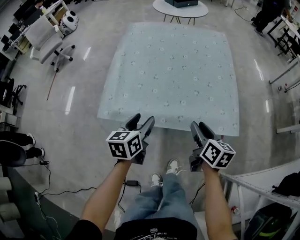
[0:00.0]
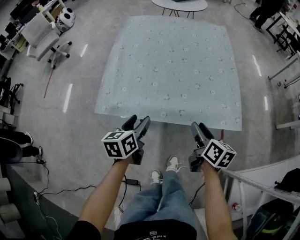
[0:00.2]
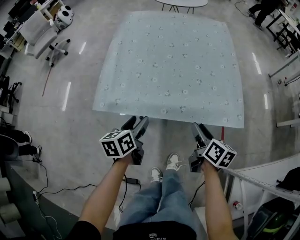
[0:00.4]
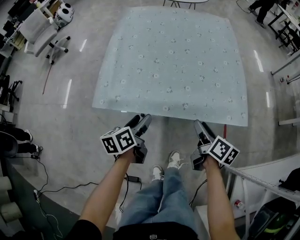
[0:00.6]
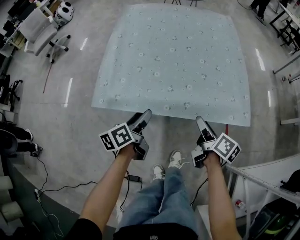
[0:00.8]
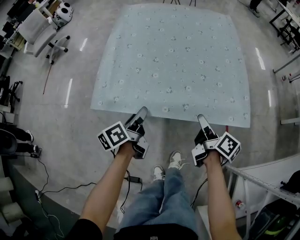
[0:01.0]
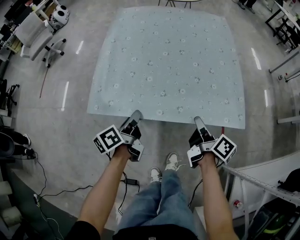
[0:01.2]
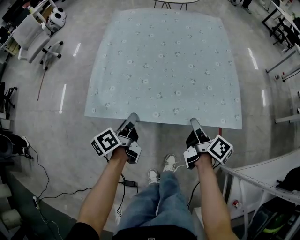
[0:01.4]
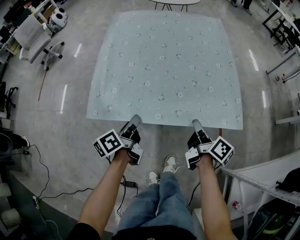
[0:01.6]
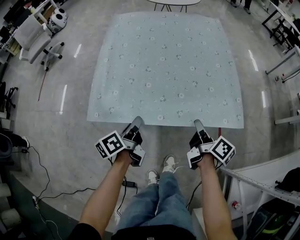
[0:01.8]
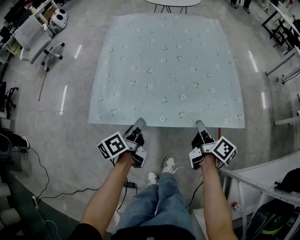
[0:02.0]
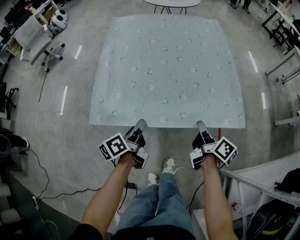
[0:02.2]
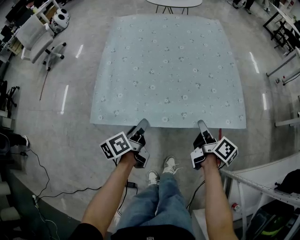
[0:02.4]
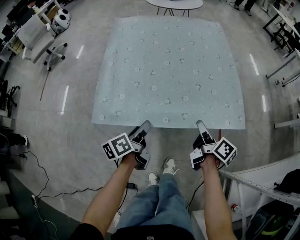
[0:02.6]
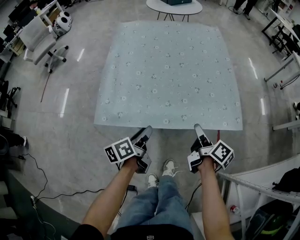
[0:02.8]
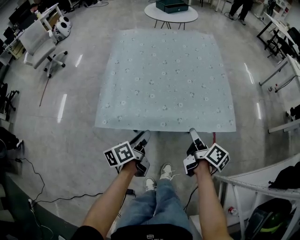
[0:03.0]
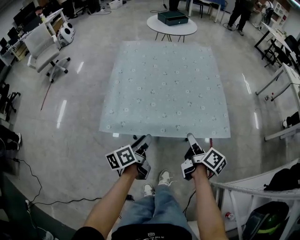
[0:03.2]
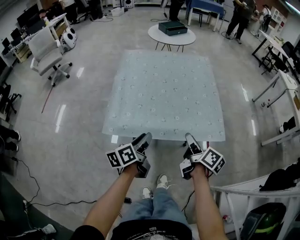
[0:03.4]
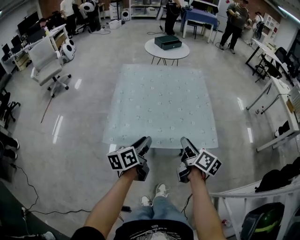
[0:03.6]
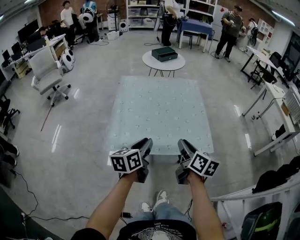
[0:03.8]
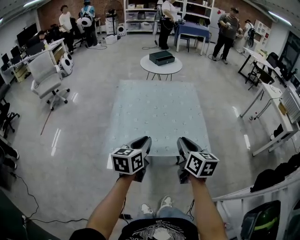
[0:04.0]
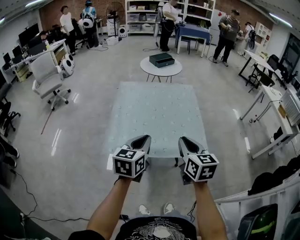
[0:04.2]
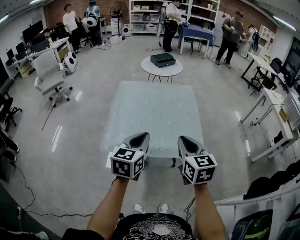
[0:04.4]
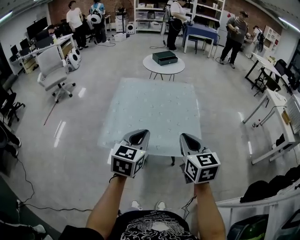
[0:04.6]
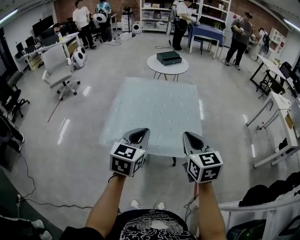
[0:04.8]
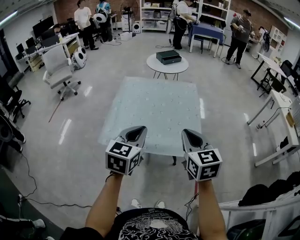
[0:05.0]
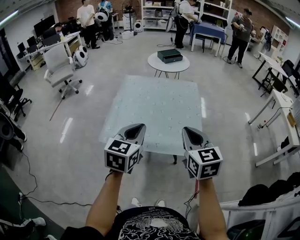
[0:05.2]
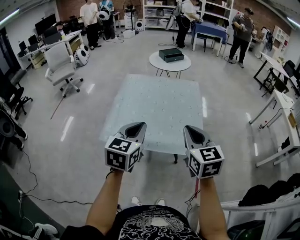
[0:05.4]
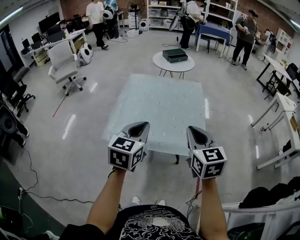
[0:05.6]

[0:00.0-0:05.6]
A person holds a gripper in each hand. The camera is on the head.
0:00.0 to 0:01.4: Both grippers move downward, roughly 5 cm. The left gripper turns by some 40 degrees, and closes its fingers; the right gripper turns by some 30 degrees, and closes up.
0:01.4 to 0:02.8: The right gripper opens up, while the left gripper shifts approximately 5 cm to the right, and opens up.
0:02.8 to 0:04.2: Both grippers travel together upward, approximately 30 cm. The right gripper rolls counterclockwise, seen from behind, by approximately 60 degrees, and closes up. Meanwhile the left gripper twists about 50 degrees clockwise, seen from behind, and closes.
0:04.2 to 0:05.6: The left gripper heads upward, covering roughly 5 cm, while the right gripper travels to the right by some 5 cm.

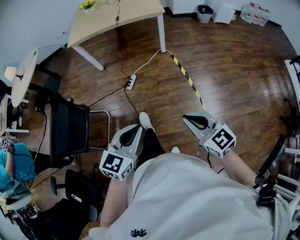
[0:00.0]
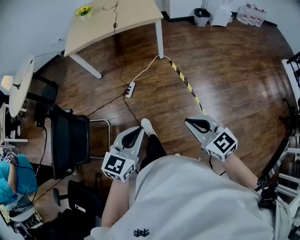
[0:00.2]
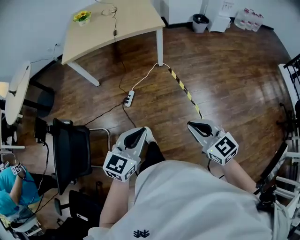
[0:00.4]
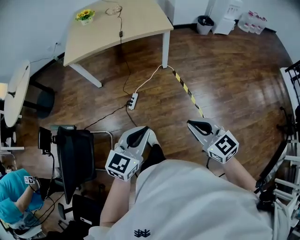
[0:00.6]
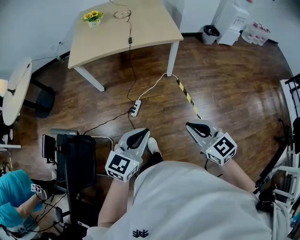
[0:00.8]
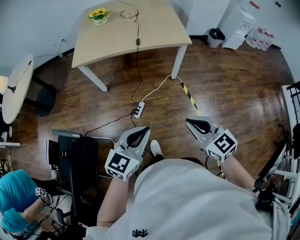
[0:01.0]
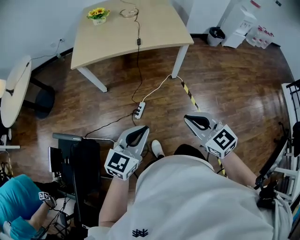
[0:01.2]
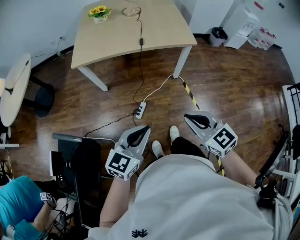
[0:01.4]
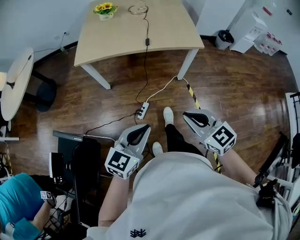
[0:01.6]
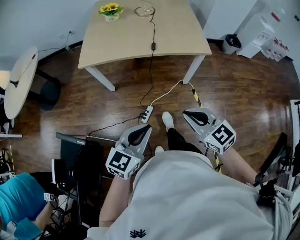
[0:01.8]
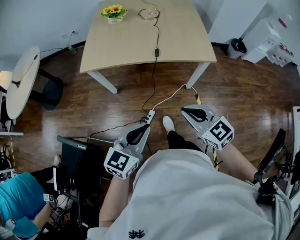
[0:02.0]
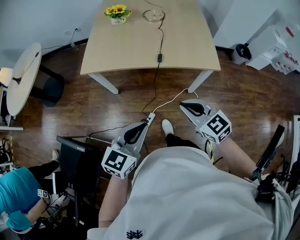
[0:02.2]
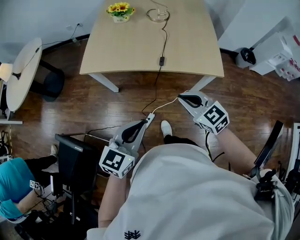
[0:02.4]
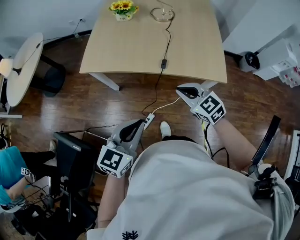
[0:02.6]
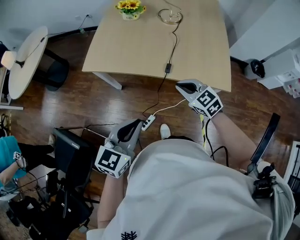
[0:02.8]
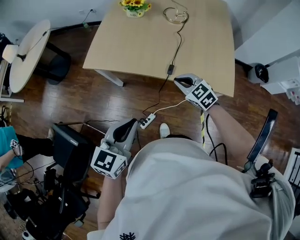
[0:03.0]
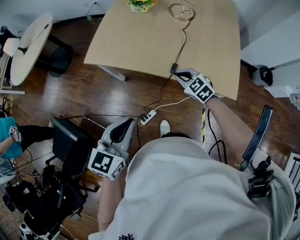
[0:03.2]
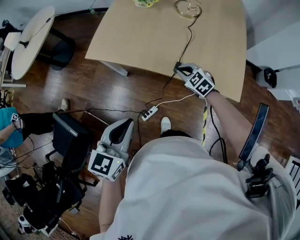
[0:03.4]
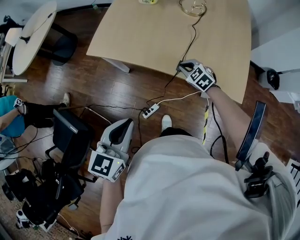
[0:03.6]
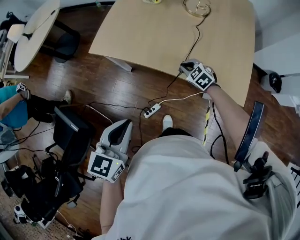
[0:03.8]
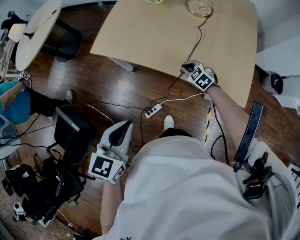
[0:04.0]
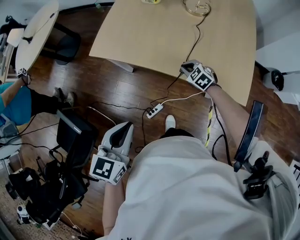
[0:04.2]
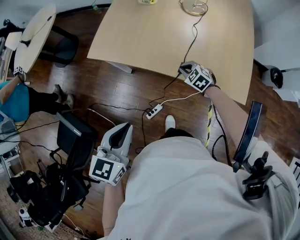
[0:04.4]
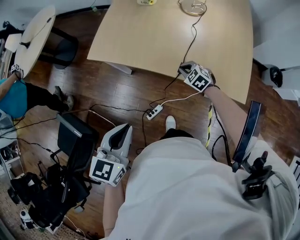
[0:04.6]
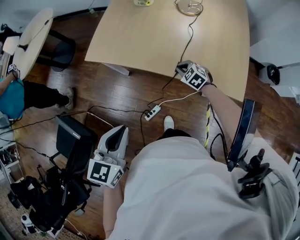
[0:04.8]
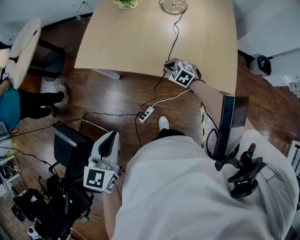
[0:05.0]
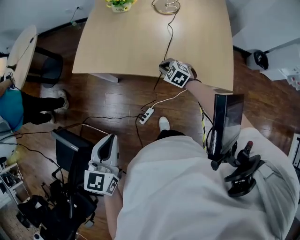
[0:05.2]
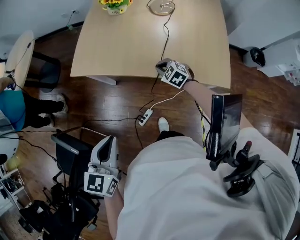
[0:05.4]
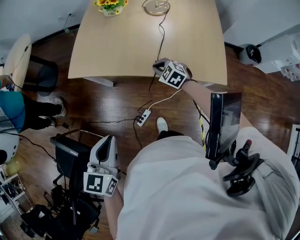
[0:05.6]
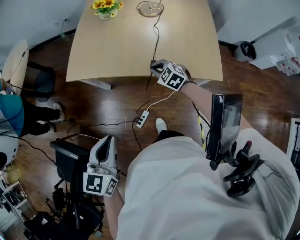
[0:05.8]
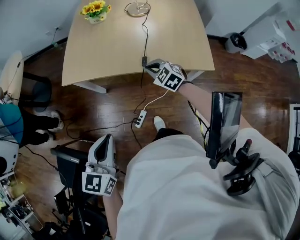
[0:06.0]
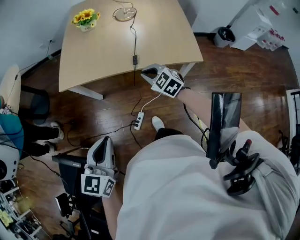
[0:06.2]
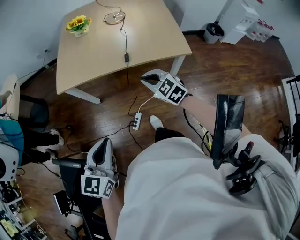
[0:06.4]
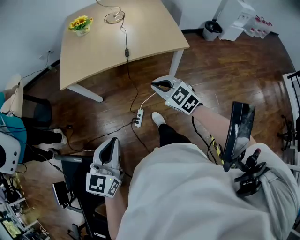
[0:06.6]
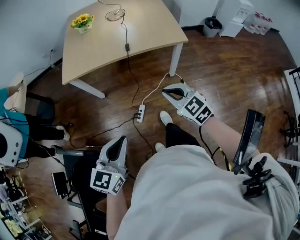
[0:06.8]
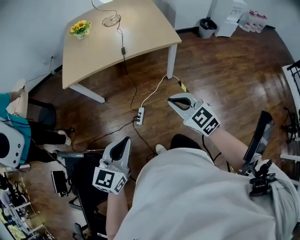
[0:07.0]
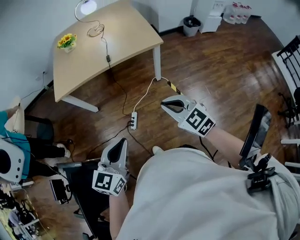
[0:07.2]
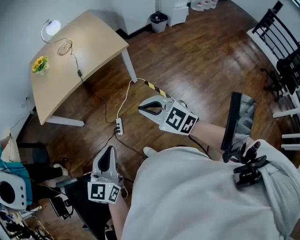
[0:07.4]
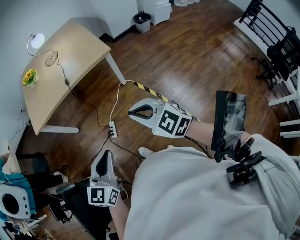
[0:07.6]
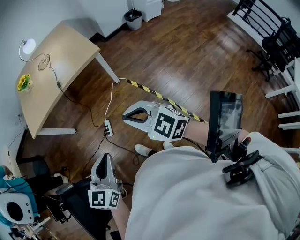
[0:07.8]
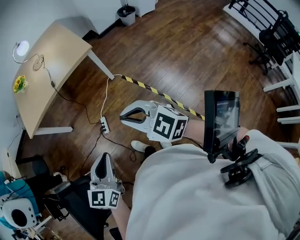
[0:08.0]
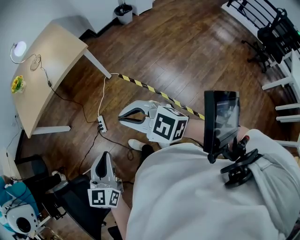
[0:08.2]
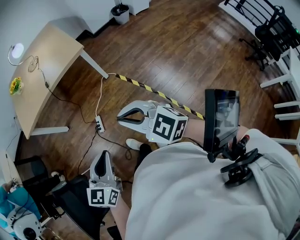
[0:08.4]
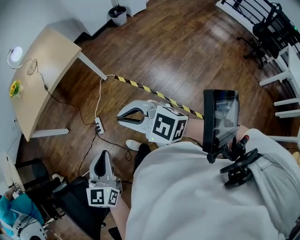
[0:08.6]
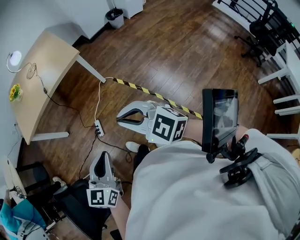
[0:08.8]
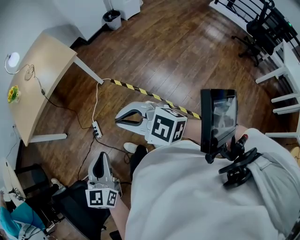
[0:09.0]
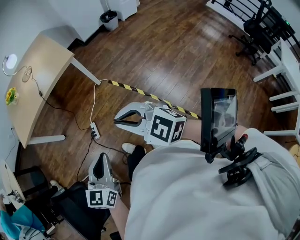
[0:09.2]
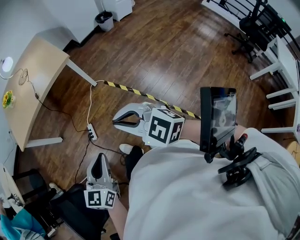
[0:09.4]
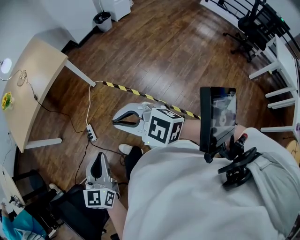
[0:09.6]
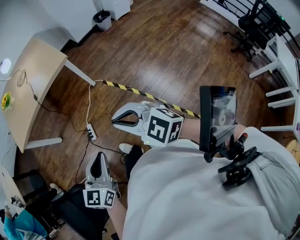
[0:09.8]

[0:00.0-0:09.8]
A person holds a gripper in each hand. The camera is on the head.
0:00.0 to 0:01.4: Both grippers move forward and to the left, approximately 40 cm.
0:01.4 to 0:02.8: The right gripper moves forward, about 40 cm, and changes its angle by roughly 20 degrees, while the left gripper shifts roughly 30 cm forward, and swivels some 20 degrees.
0:02.8 to 0:04.2: The right gripper heads downward and forward, covering some 20 cm, and changes its angle by approximately 20 degrees. The left gripper changes place by some 5 cm.
0:04.2 to 0:05.6: The right gripper moves roughly 5 cm.
0:05.6 to 0:07.0: The right gripper moves approximately 50 cm, and turns by about 40 degrees. Meanwhile the left gripper moves roughly 25 cm, and turns by about 30 degrees.
0:07.0 to 0:08.4: The left gripper is displaced to the right and backward by some 25 cm; the right gripper heads backward, to the right and upward, covering approximately 25 cm.
0:08.4 to 0:09.8: The grippers make only small movements.

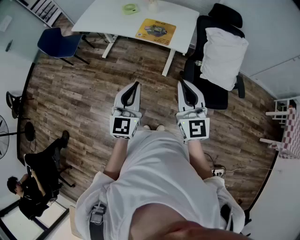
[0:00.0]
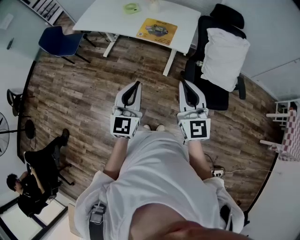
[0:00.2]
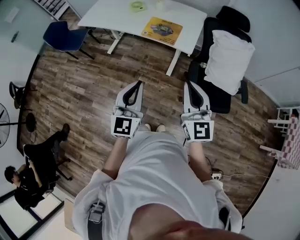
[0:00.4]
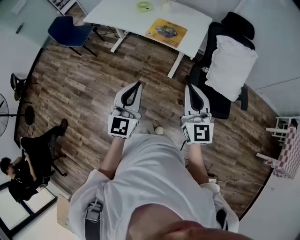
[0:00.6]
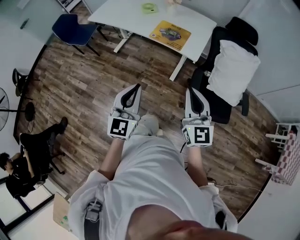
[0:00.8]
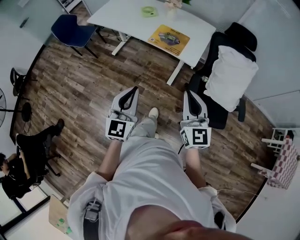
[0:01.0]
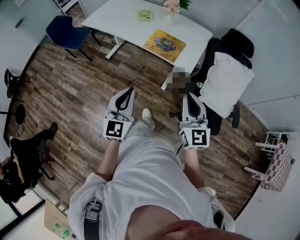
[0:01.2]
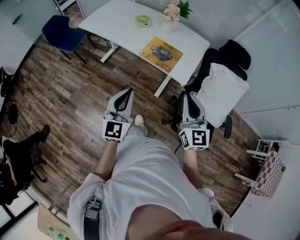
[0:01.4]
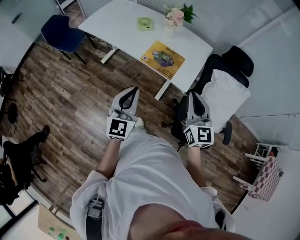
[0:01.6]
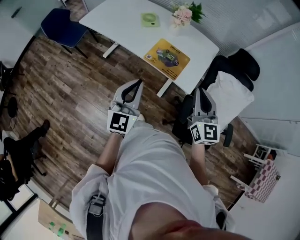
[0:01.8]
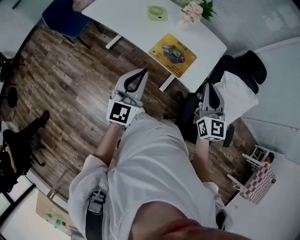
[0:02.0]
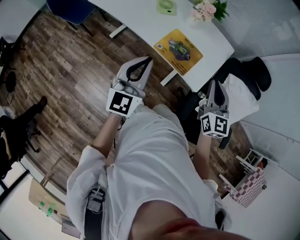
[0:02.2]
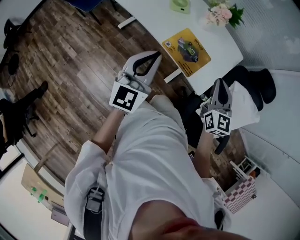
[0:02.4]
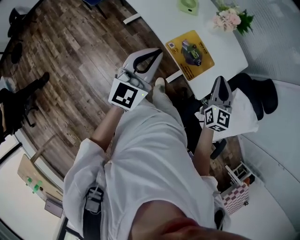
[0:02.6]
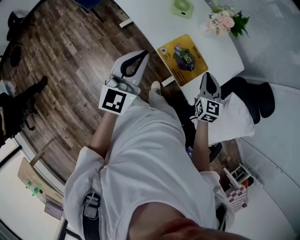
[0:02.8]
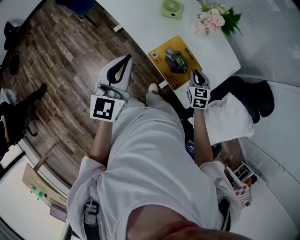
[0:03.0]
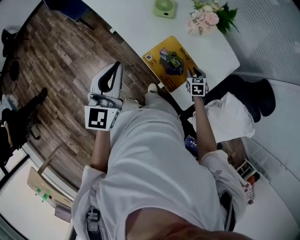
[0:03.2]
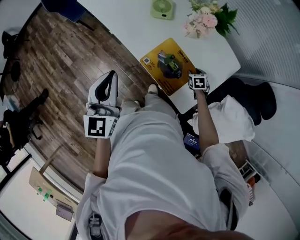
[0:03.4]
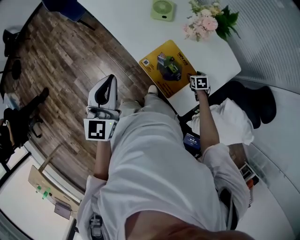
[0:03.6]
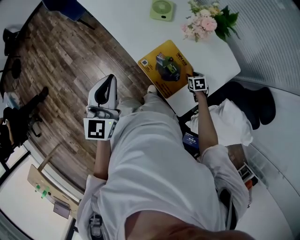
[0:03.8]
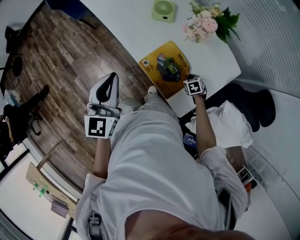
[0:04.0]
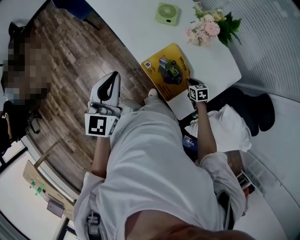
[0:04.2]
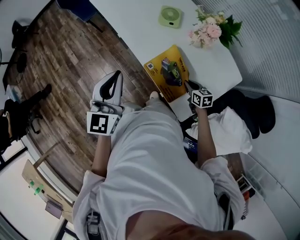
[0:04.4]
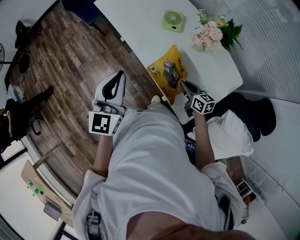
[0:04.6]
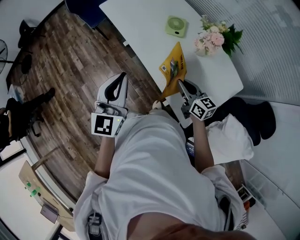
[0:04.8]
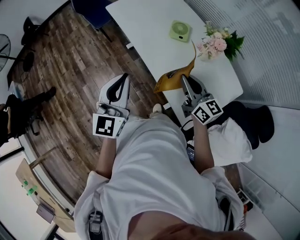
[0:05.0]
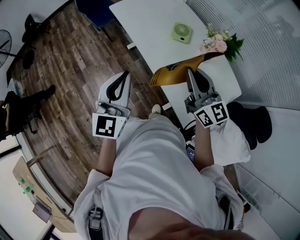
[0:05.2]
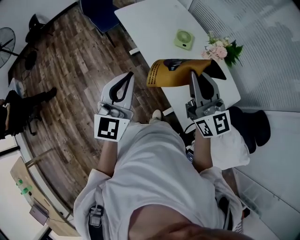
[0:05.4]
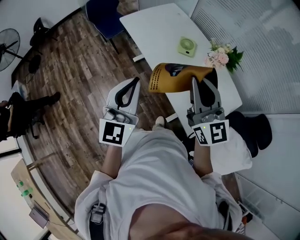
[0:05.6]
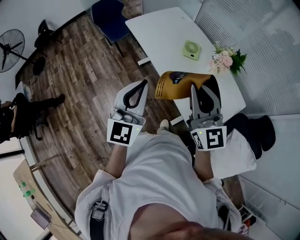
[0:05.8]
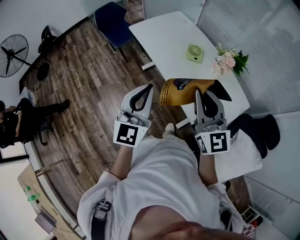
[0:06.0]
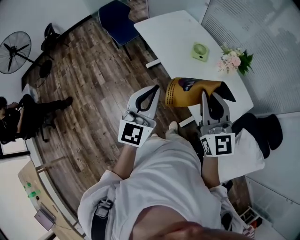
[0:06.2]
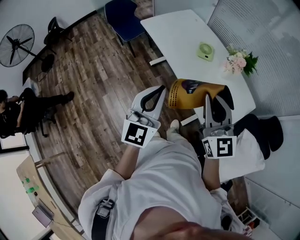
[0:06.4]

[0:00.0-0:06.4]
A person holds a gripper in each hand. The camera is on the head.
0:00.0 to 0:01.6: Both grippers travel together forward, roughly 20 cm.
0:01.6 to 0:03.2: The right gripper moves forward and downward, about 50 cm, tips its fingers downward by roughly 50 degrees, and opens. Meanwhile the left gripper moves forward, some 25 cm.
0:03.2 to 0:04.8: The right gripper shifts approximately 20 cm upward and to the left, points its fingers approximately 40 degrees further upward, and opens and closes again.
0:04.8 to 0:06.4: The left gripper travels backward, upward and to the left by about 15 cm. The right gripper shifts roughly 30 cm upward and to the left, and swivels some 40 degrees.

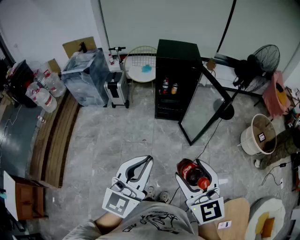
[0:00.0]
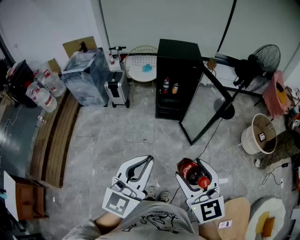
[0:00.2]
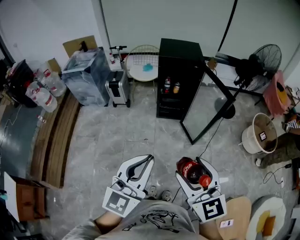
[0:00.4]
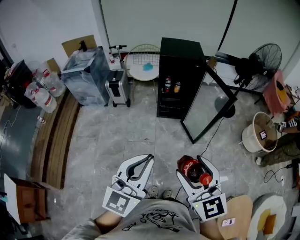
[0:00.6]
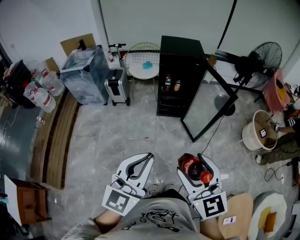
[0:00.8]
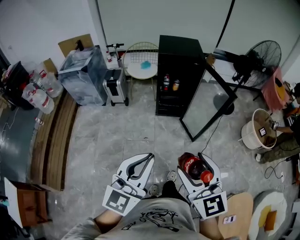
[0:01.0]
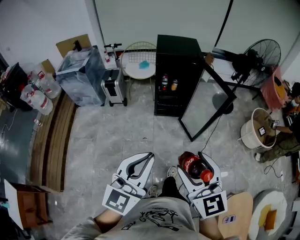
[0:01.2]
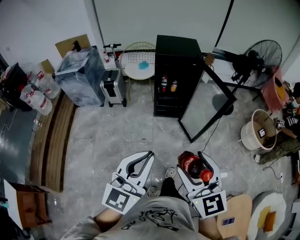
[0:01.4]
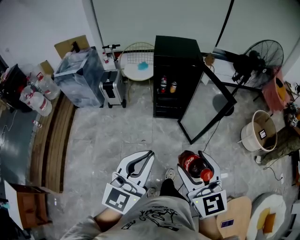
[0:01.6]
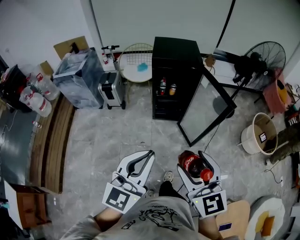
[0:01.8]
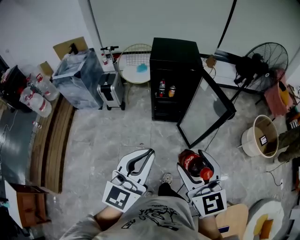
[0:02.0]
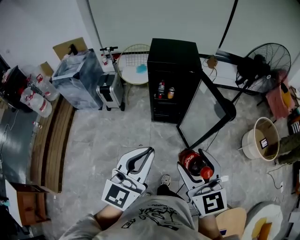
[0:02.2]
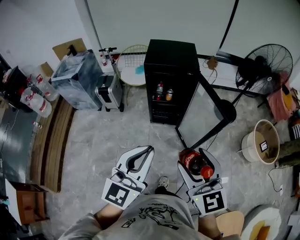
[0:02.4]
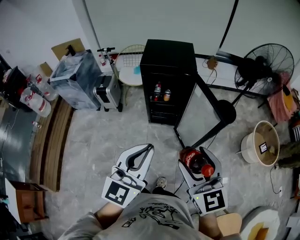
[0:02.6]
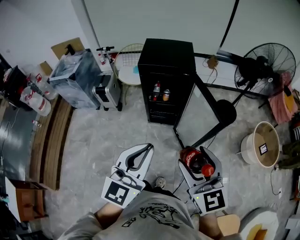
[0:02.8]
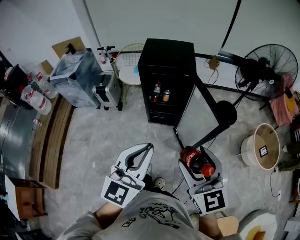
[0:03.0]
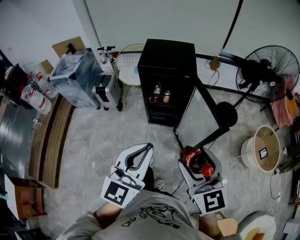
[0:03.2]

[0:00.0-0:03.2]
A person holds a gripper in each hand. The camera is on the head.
0:00.0 to 0:01.6: The grippers both shift forward by some 10 cm.
0:01.6 to 0:03.2: The grippers both shift forward and to the right by roughly 25 cm.
